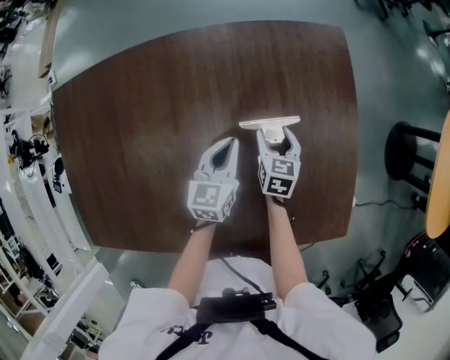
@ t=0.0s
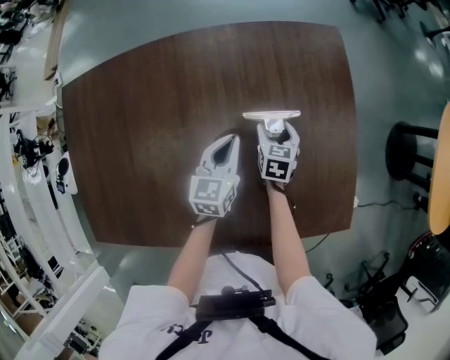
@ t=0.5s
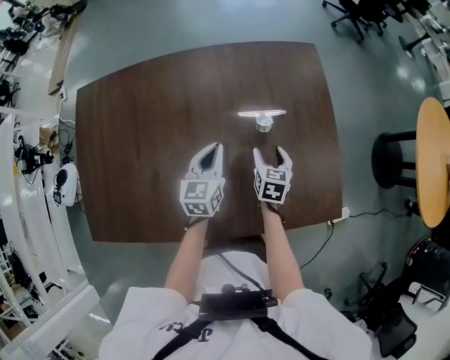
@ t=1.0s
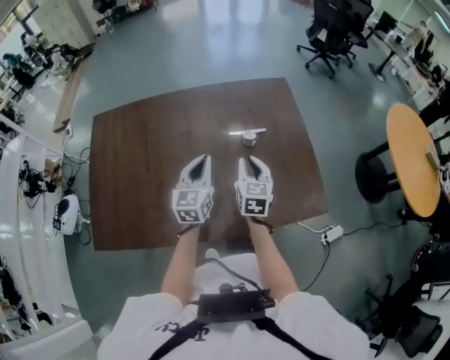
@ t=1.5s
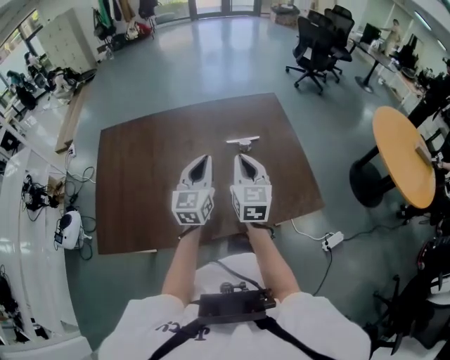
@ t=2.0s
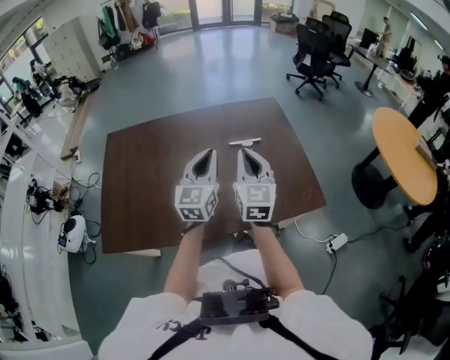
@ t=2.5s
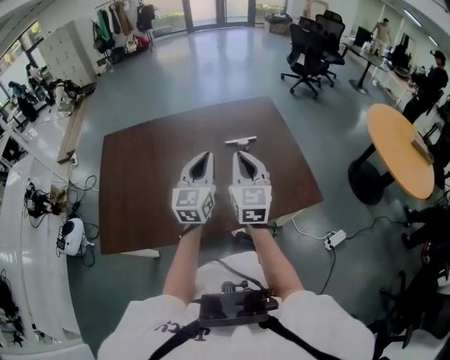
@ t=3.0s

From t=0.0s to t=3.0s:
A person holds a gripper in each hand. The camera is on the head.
From t=0.0s to t=1.5s: The right gripper heads upward and backward, covering some 30 cm, rotates about 20 degrees, and closes up. The left gripper travels backward and upward by some 25 cm.
From t=1.5s to t=3.0s: Both grippers travel together upward and backward, approximately 20 cm. The right gripper turns by roughly 20 degrees.

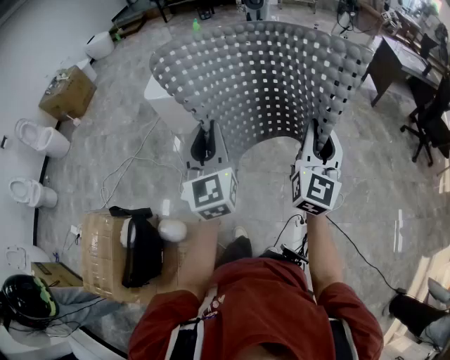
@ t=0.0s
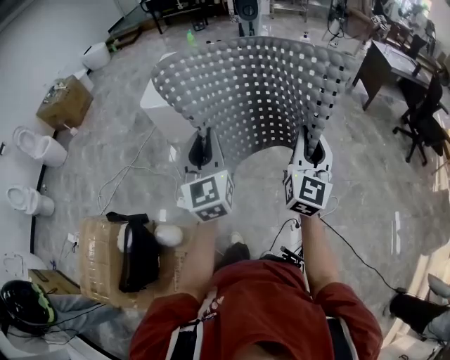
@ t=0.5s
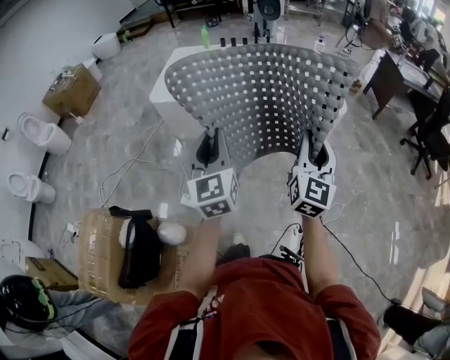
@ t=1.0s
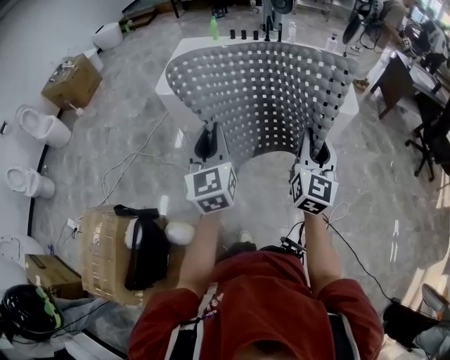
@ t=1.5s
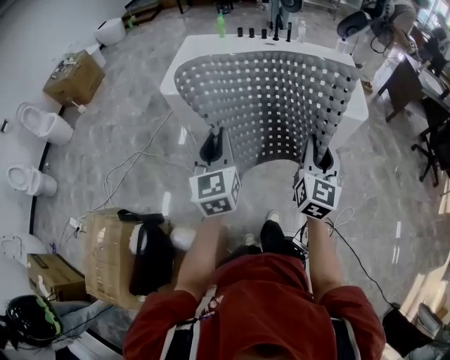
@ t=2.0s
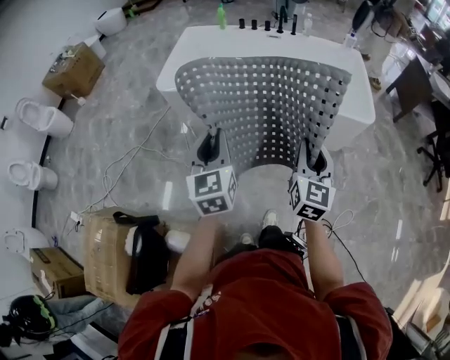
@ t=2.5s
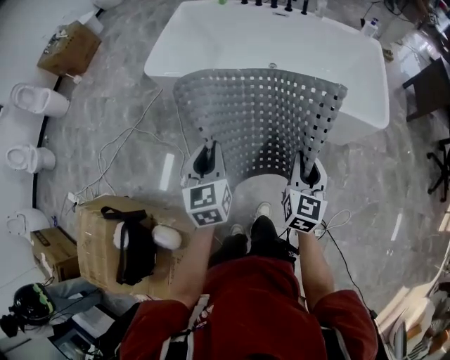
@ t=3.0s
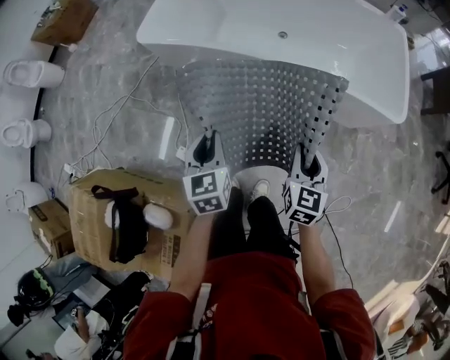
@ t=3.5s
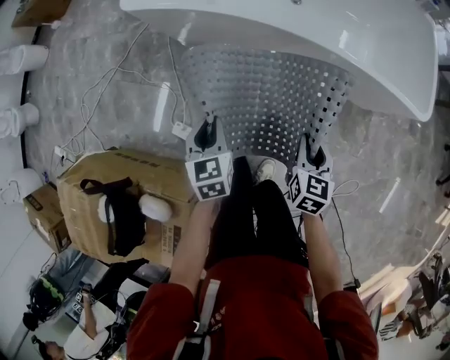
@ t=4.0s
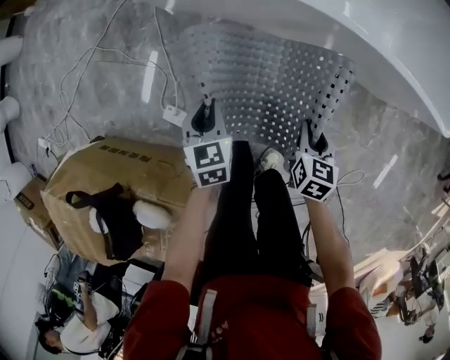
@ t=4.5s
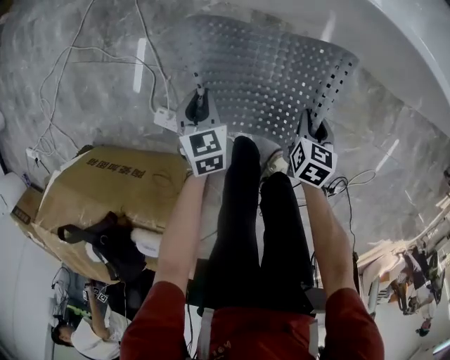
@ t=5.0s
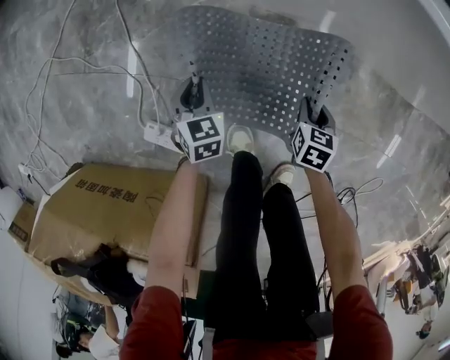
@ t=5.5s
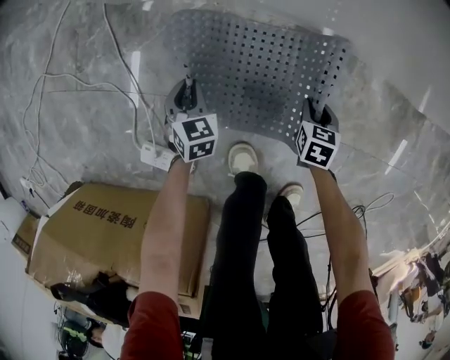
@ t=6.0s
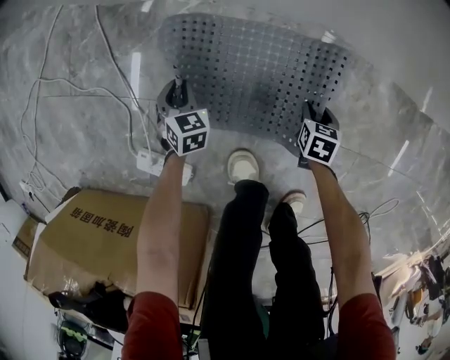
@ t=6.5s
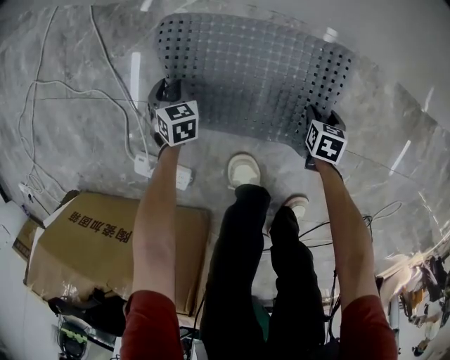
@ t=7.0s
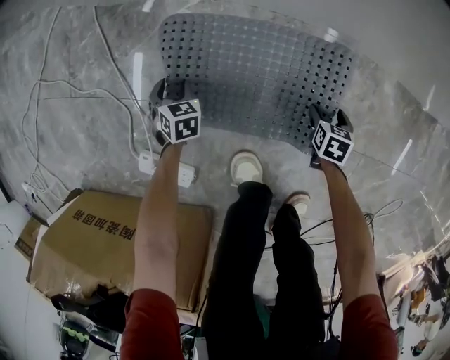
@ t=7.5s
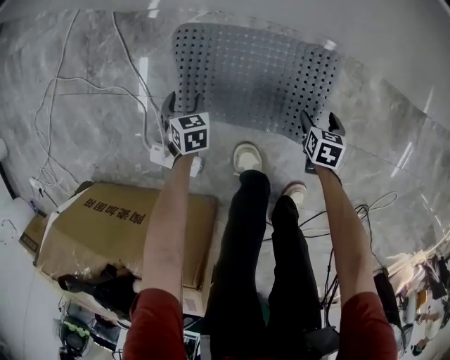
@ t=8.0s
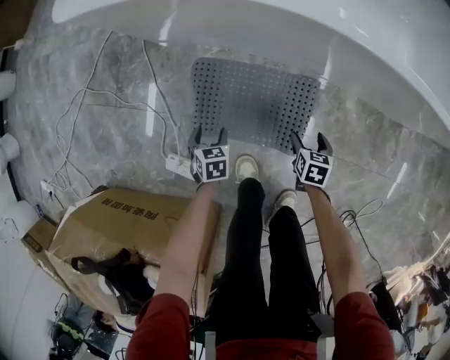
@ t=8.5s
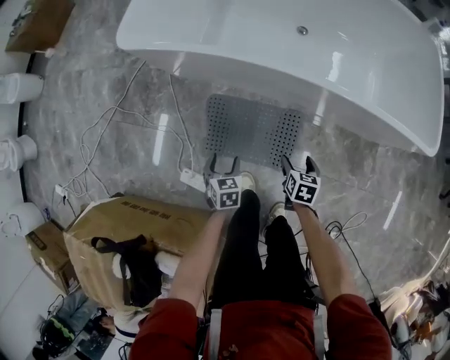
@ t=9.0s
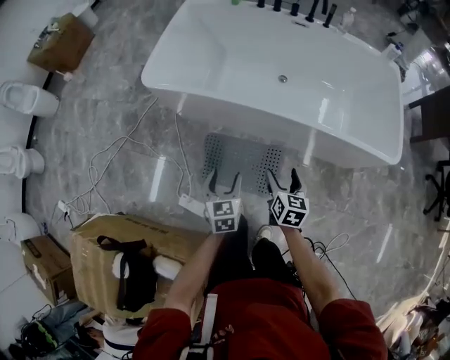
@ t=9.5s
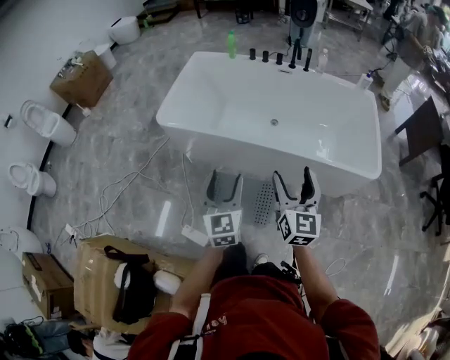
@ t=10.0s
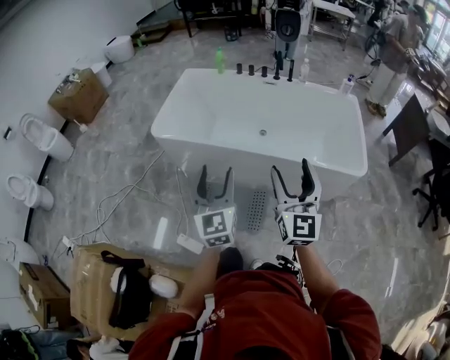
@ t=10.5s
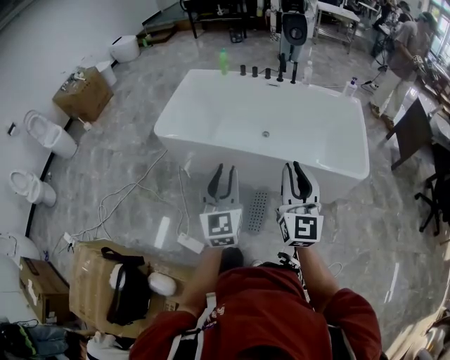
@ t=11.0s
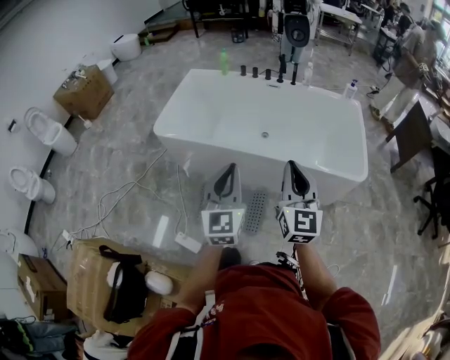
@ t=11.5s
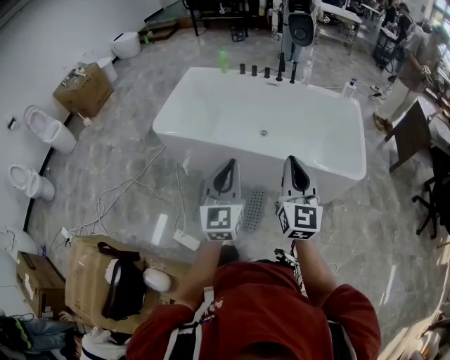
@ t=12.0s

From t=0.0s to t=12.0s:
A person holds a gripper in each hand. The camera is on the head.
From t=0.0s to t=2.0s: The left gripper travels to the left, forward and downward by about 15 cm, while the right gripper heads to the left, downward and forward, covering some 15 cm.
From t=2.0s to t=4.0s: Both grippers travel together downward and forward, about 40 cm. The left gripper angles its fingers downward, by some 40 degrees, while the right gripper tips its fingers downward by roughly 40 degrees.
From t=4.0s to t=6.0s: The two grippers go some 60 cm downward. The right gripper swivels approximately 20 degrees; the left gripper changes its angle by some 20 degrees.
From t=6.0s to t=8.0s: The left gripper moves roughly 10 cm downward and comes back, and opens. Meanwhile the right gripper travels downward and back again, approximately 10 cm each way, and opens.
From t=8.0s to t=10.0s: The grippers both shift upward by some 90 cm. The left gripper tips its fingers upward by some 50 degrees. The right gripper tilts its fingers approximately 70 degrees upward.
From t=10.0s to t=12.0s: Both grippers move upward, to the right and backward, approximately 15 cm. The left gripper closes its fingers, while the right gripper closes up.

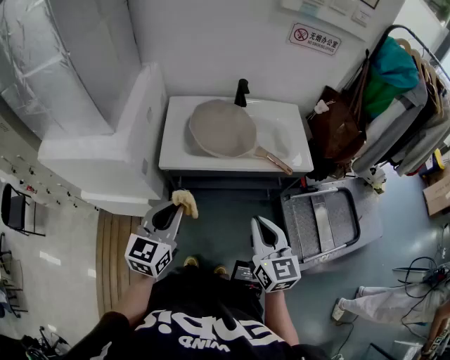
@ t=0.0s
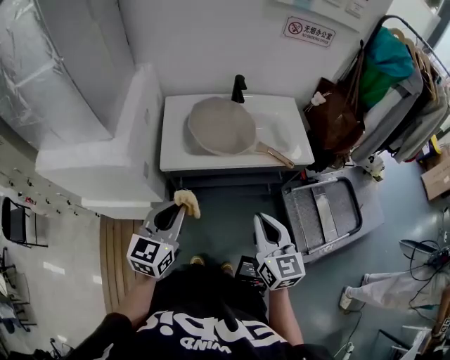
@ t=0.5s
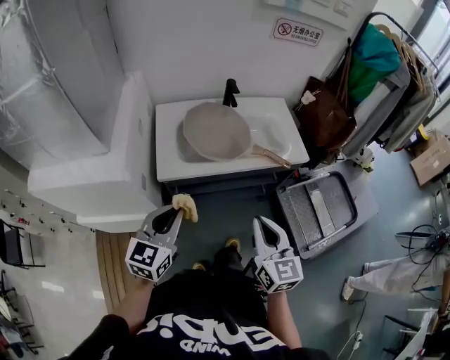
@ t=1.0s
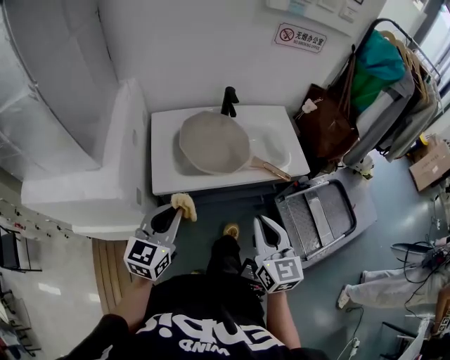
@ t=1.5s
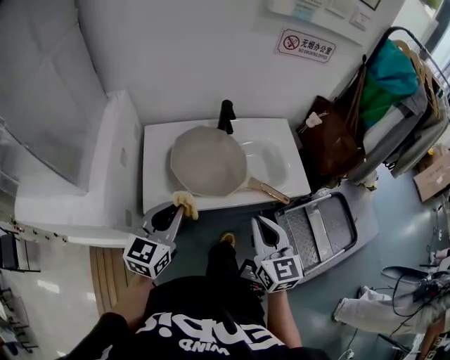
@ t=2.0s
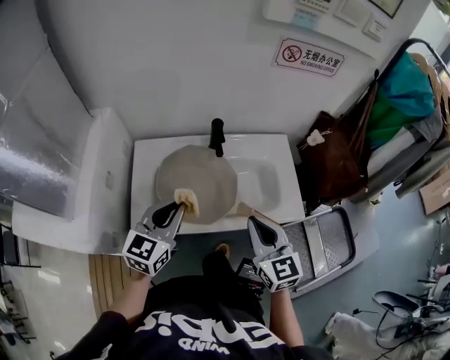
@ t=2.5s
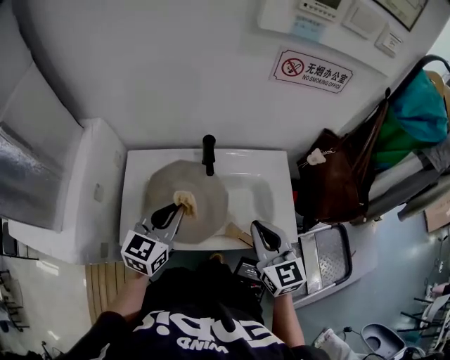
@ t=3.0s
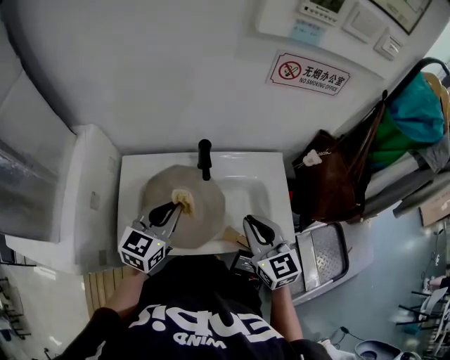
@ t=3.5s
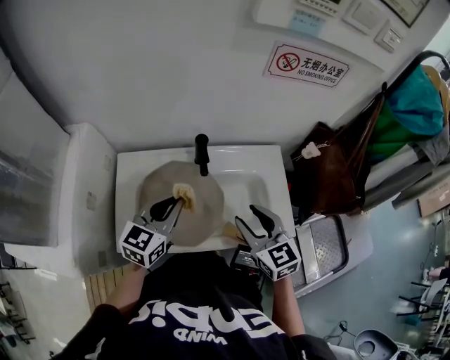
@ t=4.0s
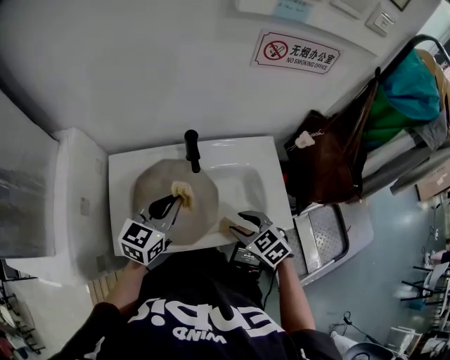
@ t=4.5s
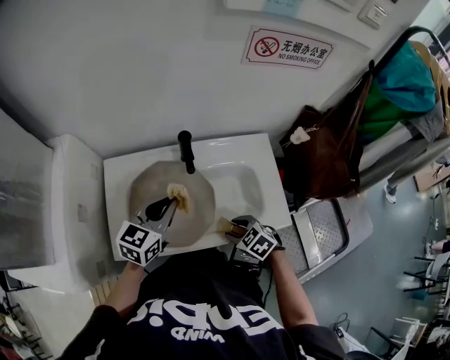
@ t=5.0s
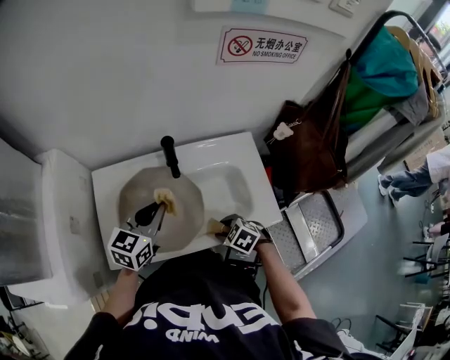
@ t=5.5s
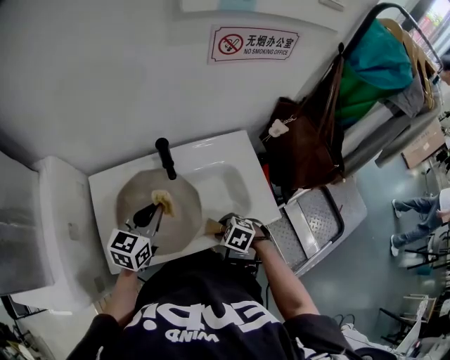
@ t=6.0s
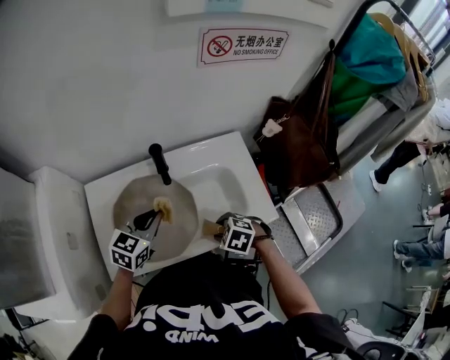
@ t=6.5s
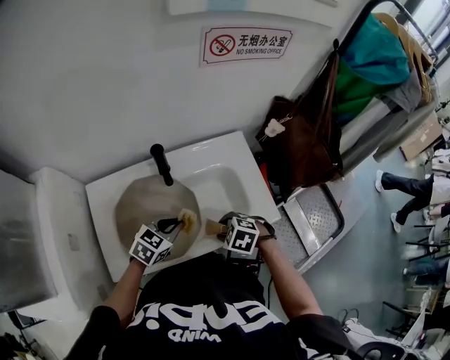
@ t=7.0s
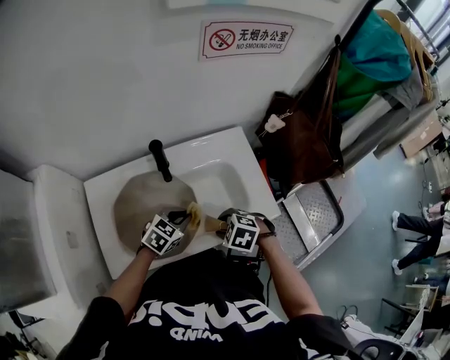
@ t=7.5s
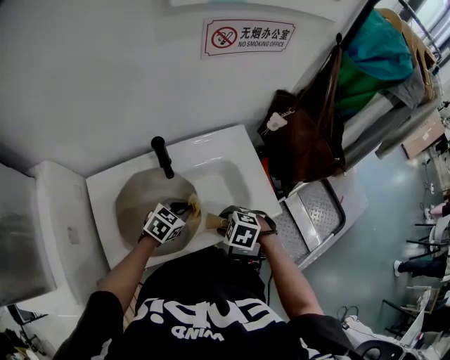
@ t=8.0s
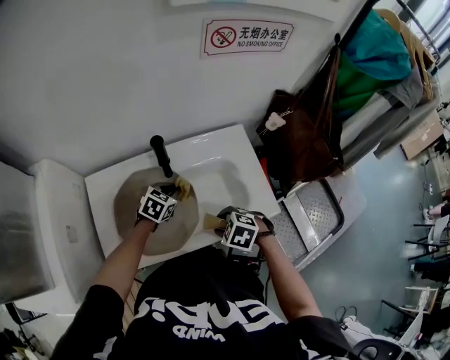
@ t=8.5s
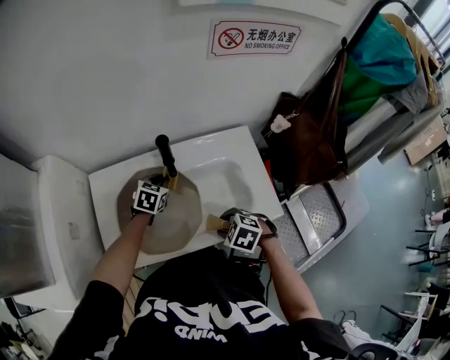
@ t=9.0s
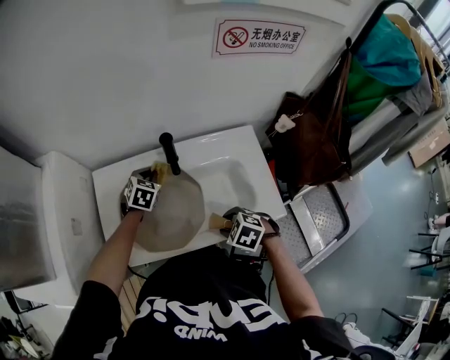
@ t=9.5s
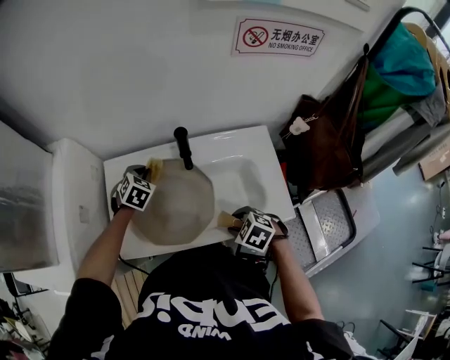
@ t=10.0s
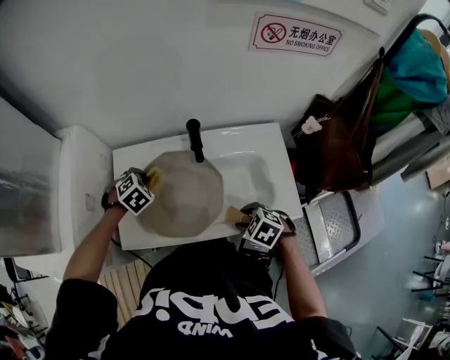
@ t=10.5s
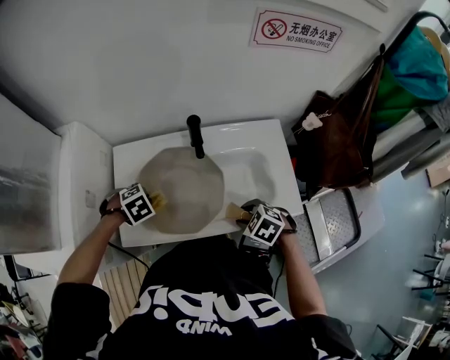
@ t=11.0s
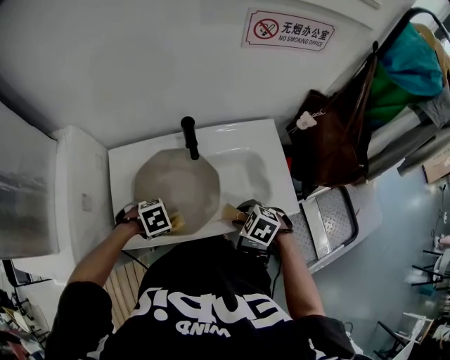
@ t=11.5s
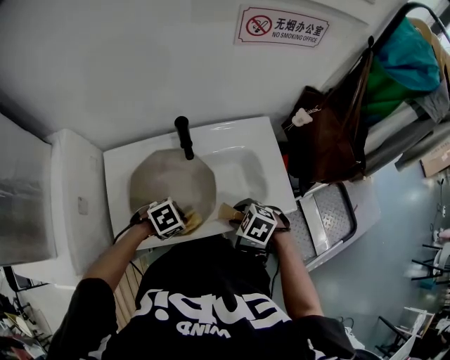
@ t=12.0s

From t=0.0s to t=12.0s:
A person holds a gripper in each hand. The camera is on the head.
From t=0.0s to t=2.0s: The two grippers go about 15 cm forward.
From t=2.0s to t=4.0s: The right gripper moves forward, about 20 cm, swivels roughly 20 degrees, and opens up. The left gripper heads forward and to the right, covering some 25 cm.
From t=4.0s to t=6.0s: The left gripper changes place by roughly 5 cm. The right gripper shifts some 20 cm downward, and tips its fingers downward by roughly 50 degrees.
From t=6.0s to t=8.0s: The left gripper moves downward, approximately 15 cm, and rotates roughly 40 degrees.
From t=8.0s to t=10.0s: The left gripper changes place by roughly 25 cm, and swivels approximately 40 degrees.
From t=10.0s to t=12.0s: The left gripper moves about 25 cm, and rotates approximately 50 degrees.
